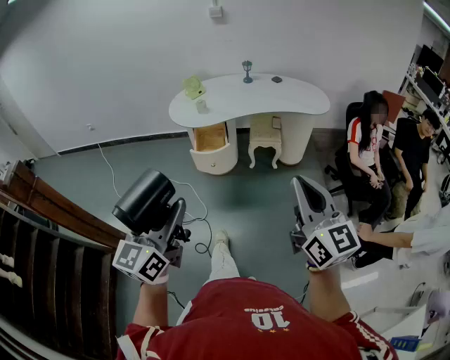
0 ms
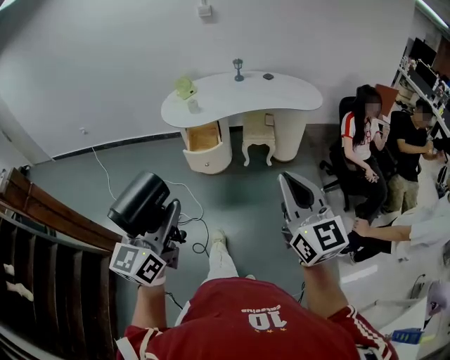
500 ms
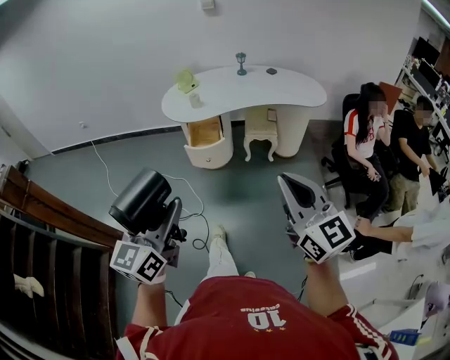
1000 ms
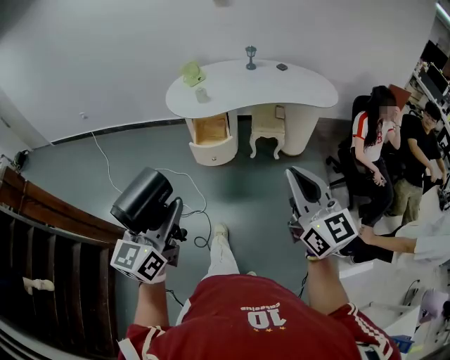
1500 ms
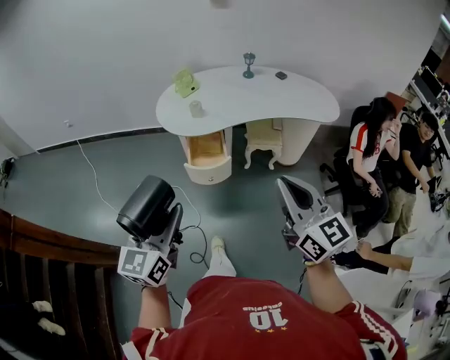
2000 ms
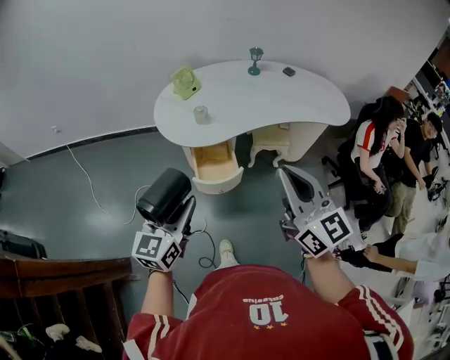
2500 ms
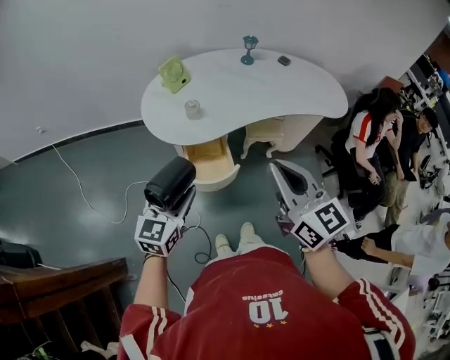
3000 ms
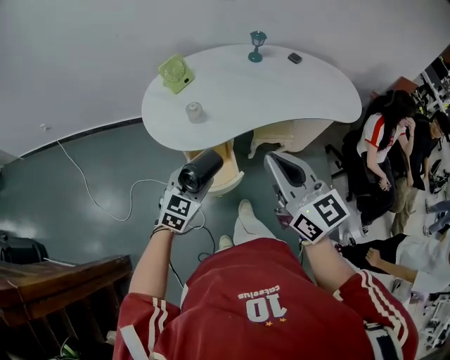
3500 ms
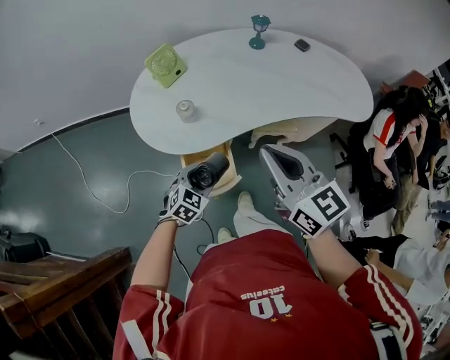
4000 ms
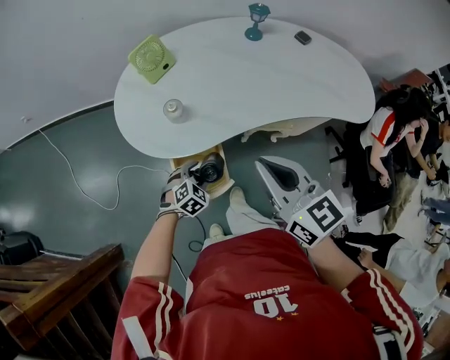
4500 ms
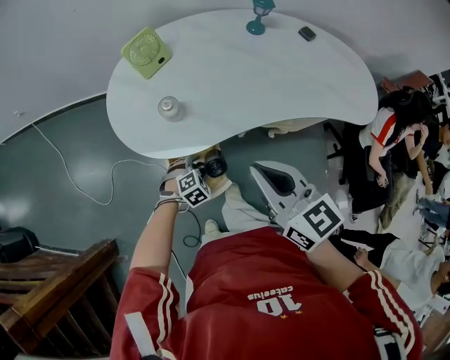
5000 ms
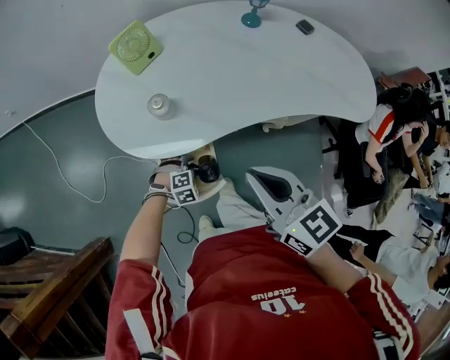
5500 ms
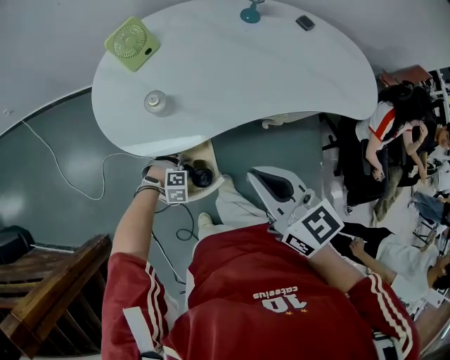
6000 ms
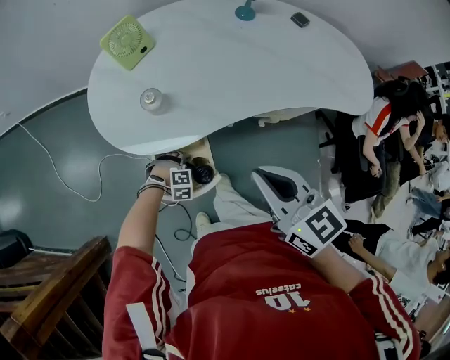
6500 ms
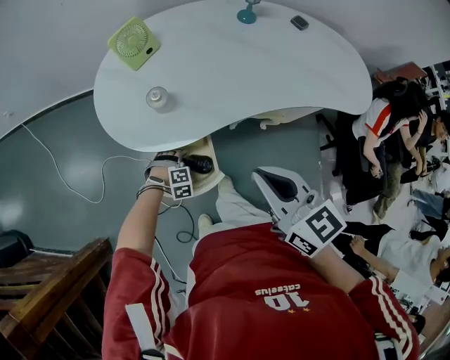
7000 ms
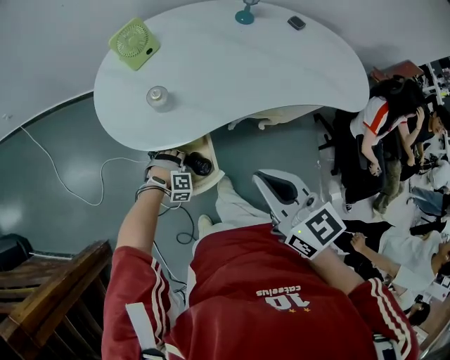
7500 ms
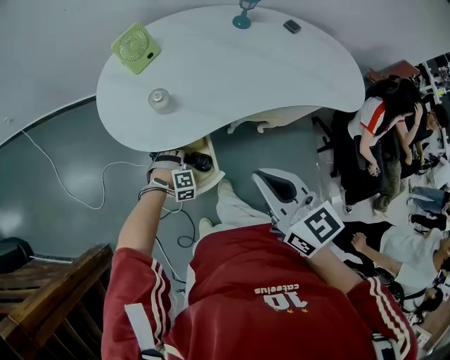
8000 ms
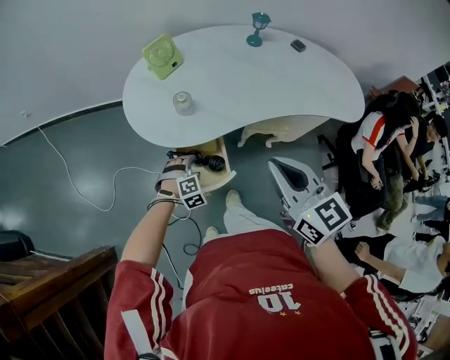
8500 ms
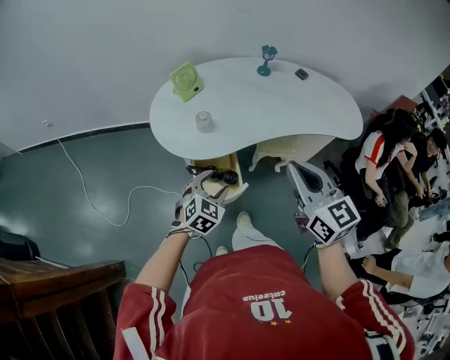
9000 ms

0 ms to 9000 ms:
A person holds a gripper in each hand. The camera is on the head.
0 ms to 2000 ms: The right gripper moves forward and to the left, approximately 25 cm. Meanwhile the left gripper shifts some 20 cm forward.
2000 ms to 4500 ms: The two grippers travel together, forward, roughly 40 cm. The right gripper shifts about 15 cm downward. The left gripper shifts about 50 cm downward, and tilts its fingers approximately 50 degrees downward.
4500 ms to 7000 ms: The left gripper travels downward by approximately 10 cm, and rotates some 40 degrees.
7000 ms to 9000 ms: The right gripper travels upward by roughly 10 cm; the left gripper moves upward, approximately 30 cm, and angles its fingers upward, by some 40 degrees.

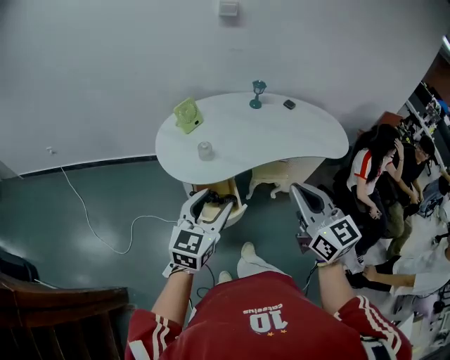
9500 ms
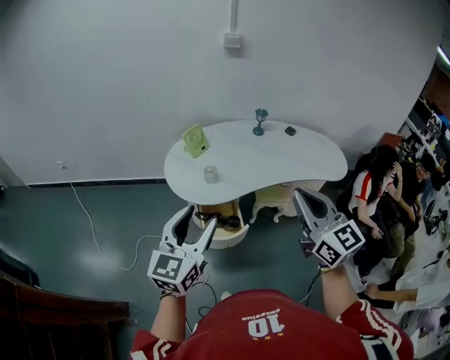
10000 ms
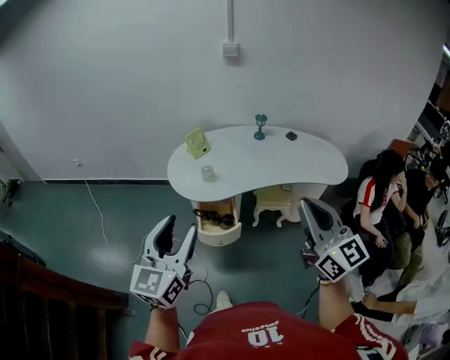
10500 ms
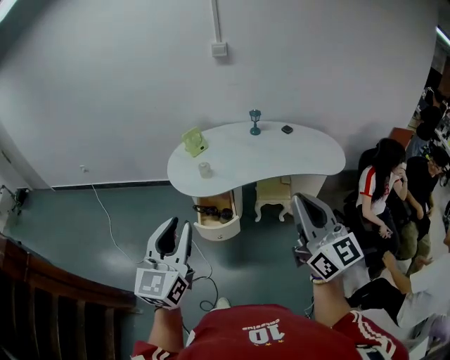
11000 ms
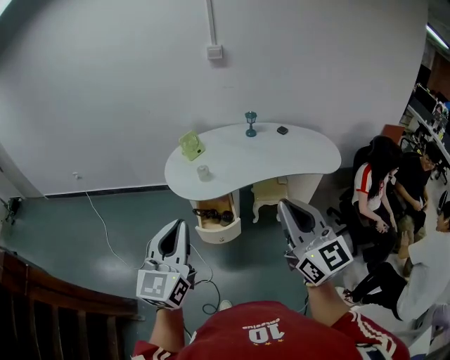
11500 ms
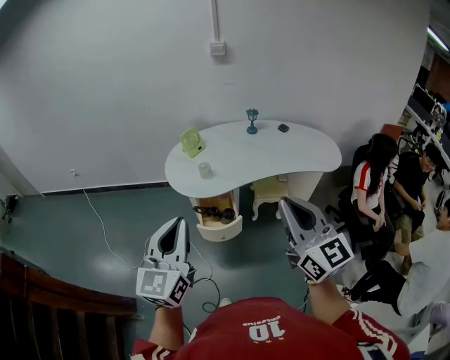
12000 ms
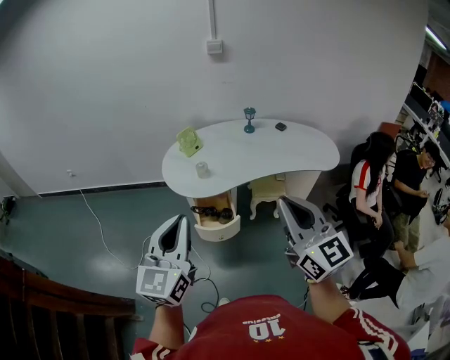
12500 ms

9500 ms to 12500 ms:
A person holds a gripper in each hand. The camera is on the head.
9500 ms to 11000 ms: The right gripper goes roughly 20 cm backward, to the right and upward, while the left gripper moves backward and upward, some 25 cm, turns by about 20 degrees, and closes.
11000 ms to 12500 ms: The right gripper moves to the left, about 10 cm.

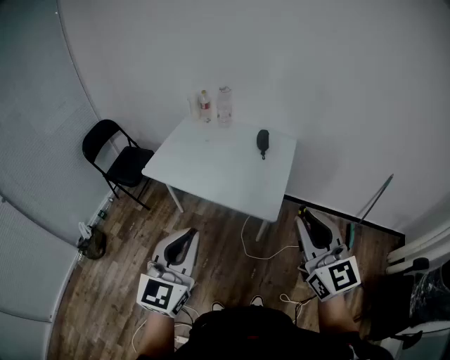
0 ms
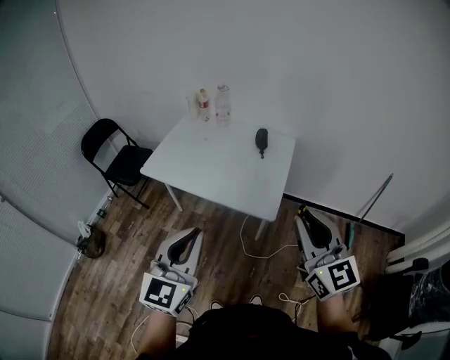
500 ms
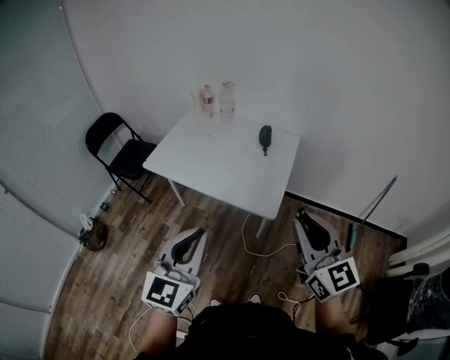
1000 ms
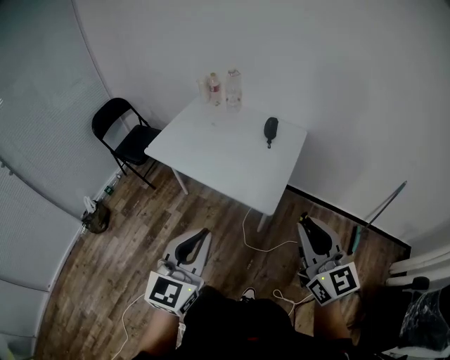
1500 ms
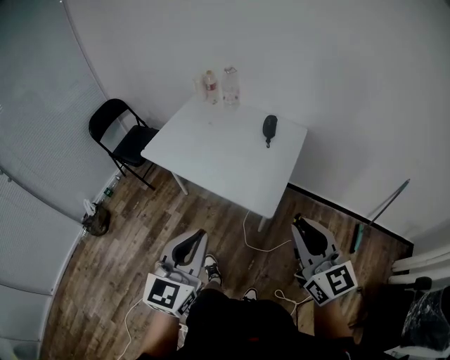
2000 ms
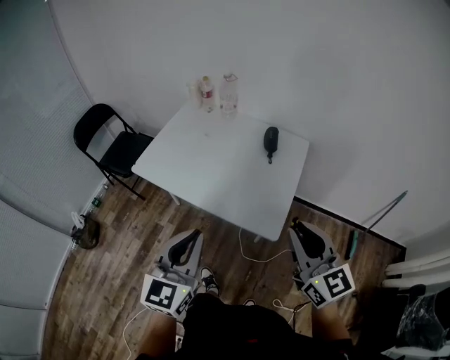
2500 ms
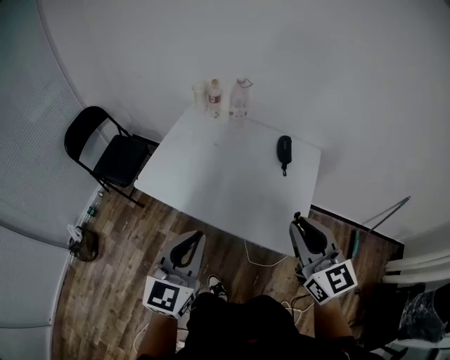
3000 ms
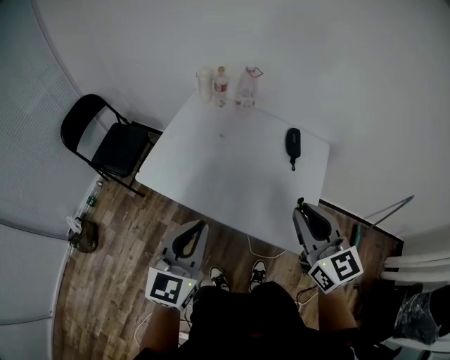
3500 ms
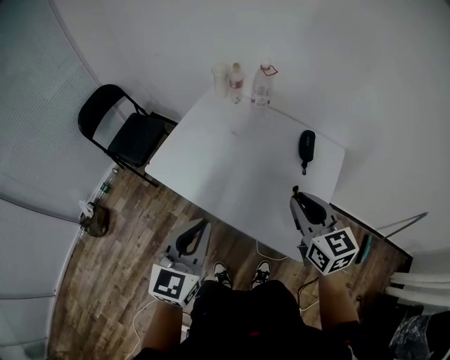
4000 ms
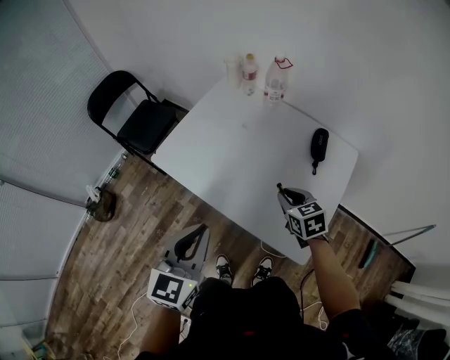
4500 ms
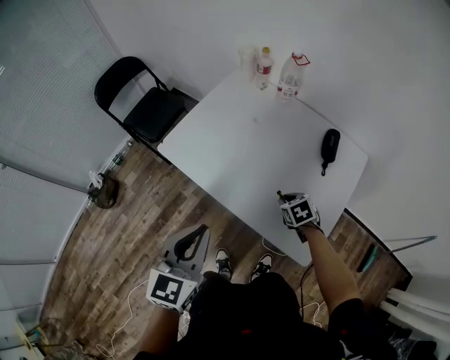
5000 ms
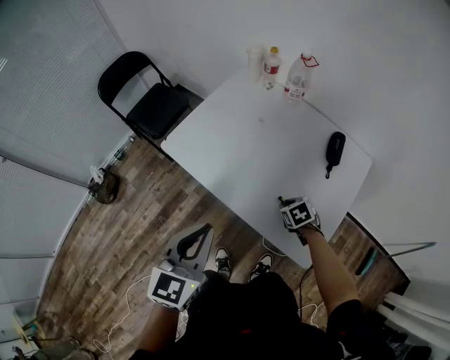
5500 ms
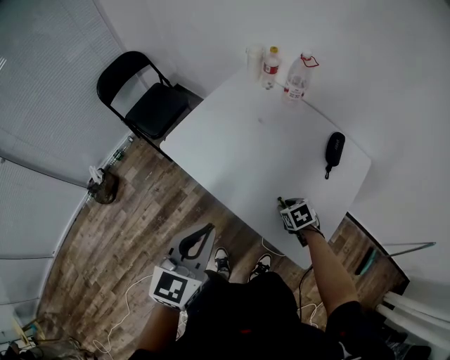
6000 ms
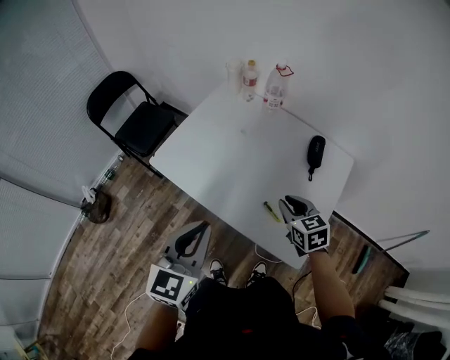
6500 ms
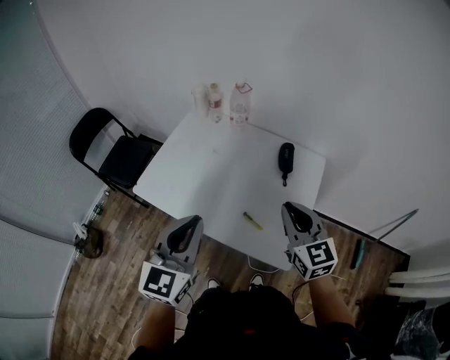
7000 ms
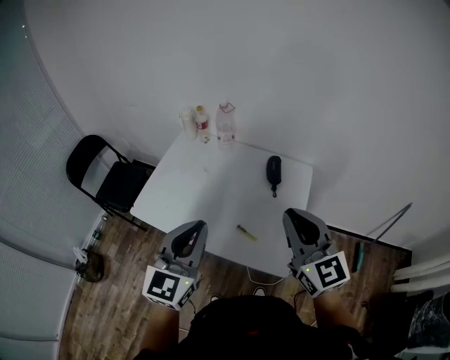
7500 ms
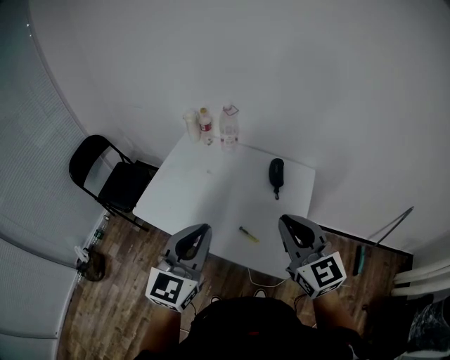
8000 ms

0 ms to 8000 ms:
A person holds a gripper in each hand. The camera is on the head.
0 ms to 2000 ms: The left gripper moves to the right and downward, about 10 cm. Meanwhile the right gripper travels downward and to the right by approximately 10 cm.
2000 ms to 4000 ms: The two grippers go about 35 cm forward and to the left.
4000 ms to 6000 ms: The right gripper moves downward, roughly 35 cm, and points its fingers roughly 50 degrees further downward.
6000 ms to 8000 ms: The left gripper goes about 15 cm upward and to the right, and turns by roughly 20 degrees. The right gripper shifts approximately 40 cm upward, and tilts its fingers about 60 degrees upward.

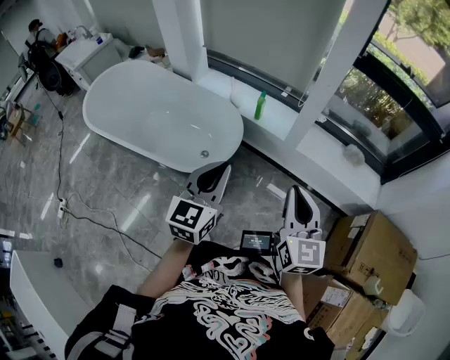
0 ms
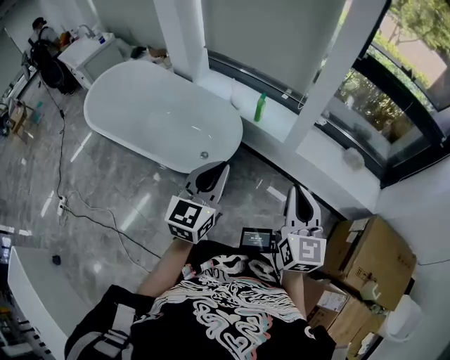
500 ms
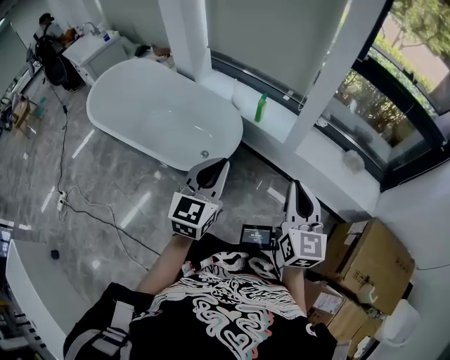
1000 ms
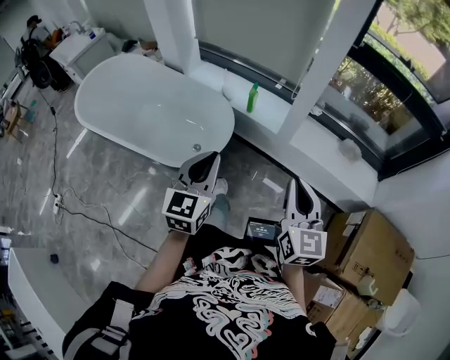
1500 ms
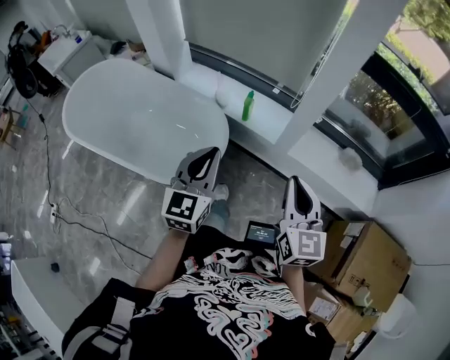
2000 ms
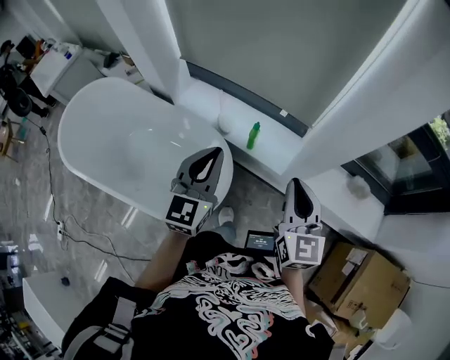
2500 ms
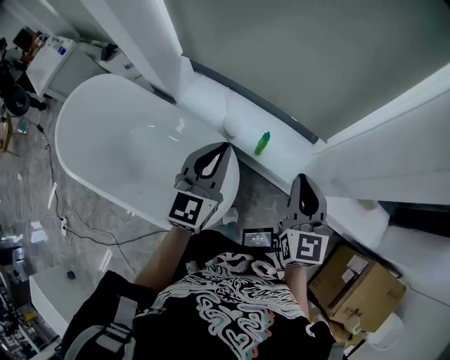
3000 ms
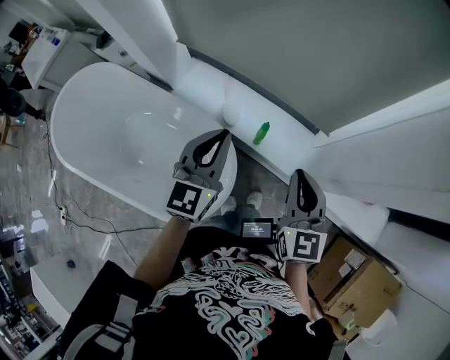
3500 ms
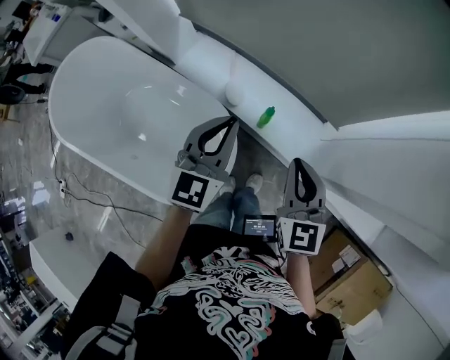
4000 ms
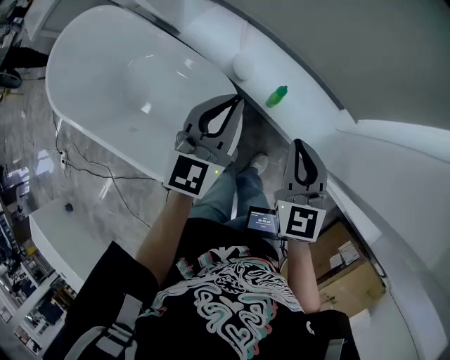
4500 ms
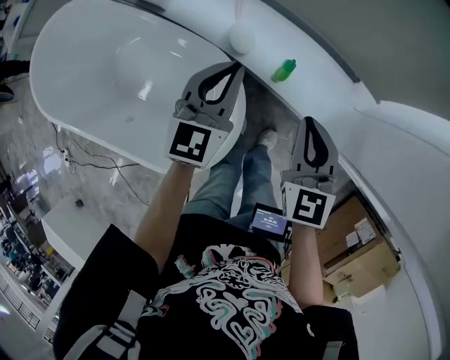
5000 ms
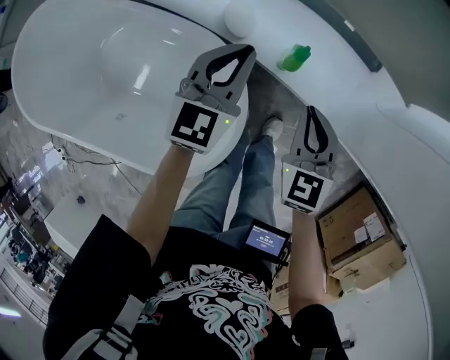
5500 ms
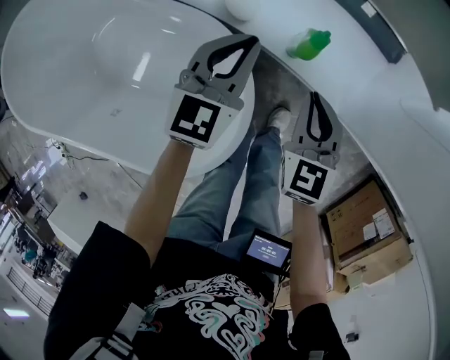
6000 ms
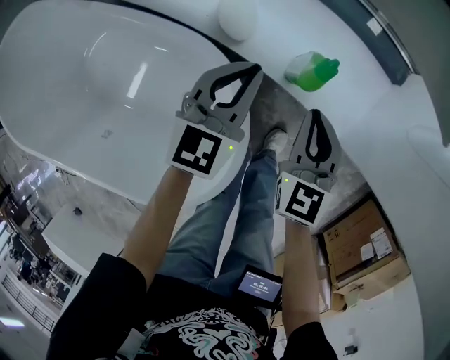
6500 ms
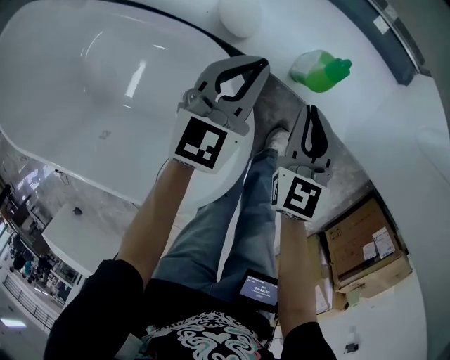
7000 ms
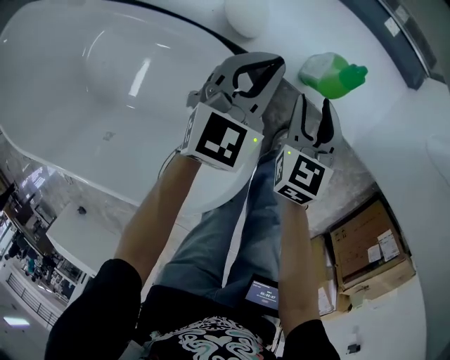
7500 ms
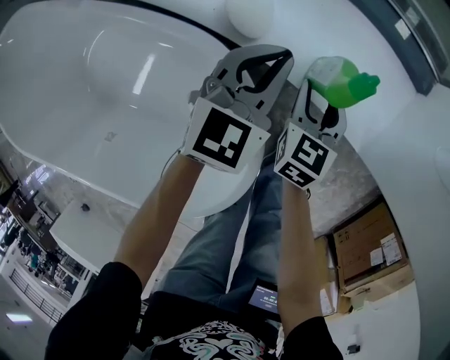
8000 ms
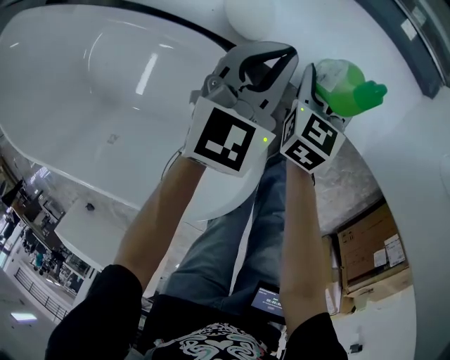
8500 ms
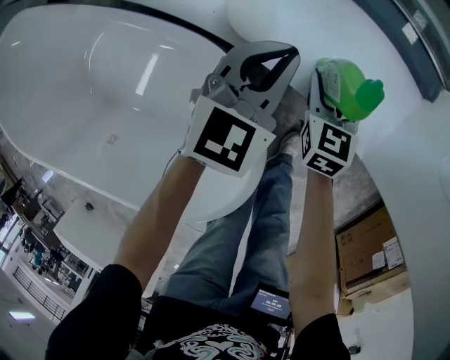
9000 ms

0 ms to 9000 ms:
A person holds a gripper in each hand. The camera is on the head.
0 ms to 2000 ms: The grippers both shift forward by approximately 15 cm.
2000 ms to 4500 ms: The two grippers travel together, forward, roughly 40 cm. The right gripper heads downward, covering some 15 cm.
4500 ms to 7000 ms: Both grippers move downward, about 30 cm. The left gripper swivels about 20 degrees.
7000 ms to 9000 ms: The left gripper moves forward, about 5 cm. Meanwhile the right gripper is displaced downward and forward by about 15 cm, and opens its fingers.
